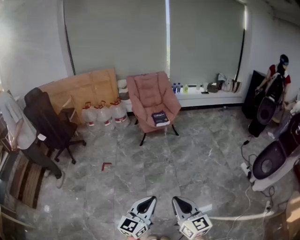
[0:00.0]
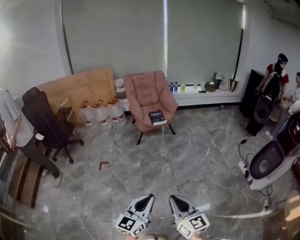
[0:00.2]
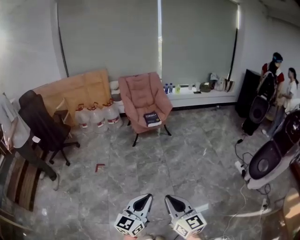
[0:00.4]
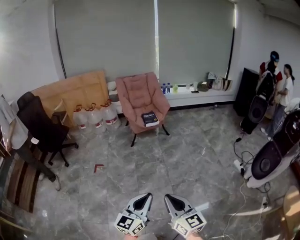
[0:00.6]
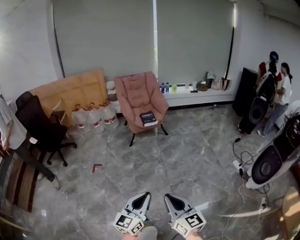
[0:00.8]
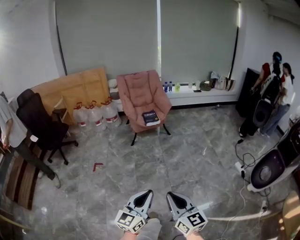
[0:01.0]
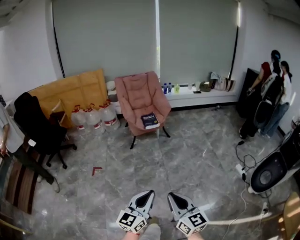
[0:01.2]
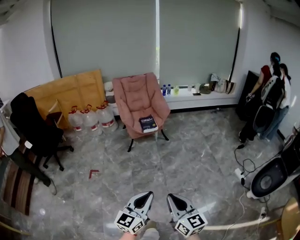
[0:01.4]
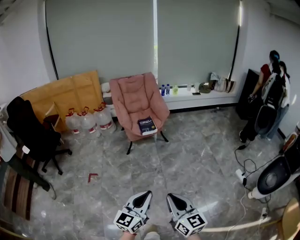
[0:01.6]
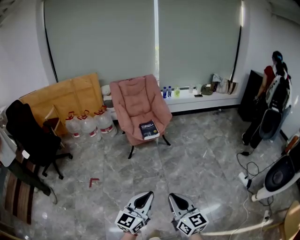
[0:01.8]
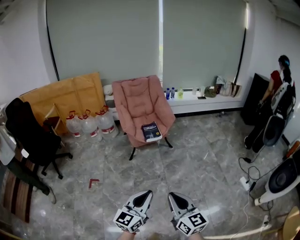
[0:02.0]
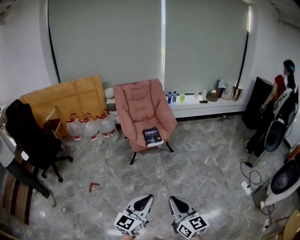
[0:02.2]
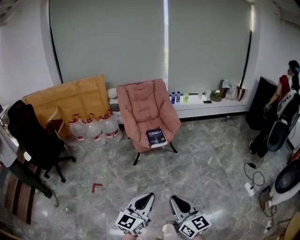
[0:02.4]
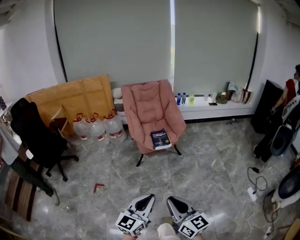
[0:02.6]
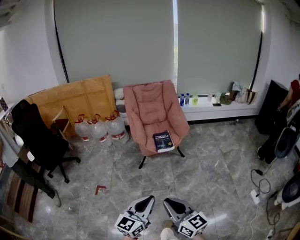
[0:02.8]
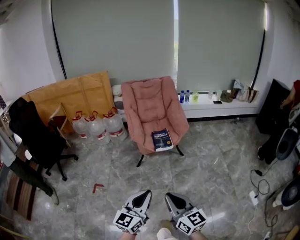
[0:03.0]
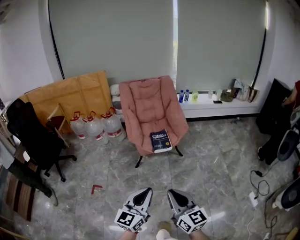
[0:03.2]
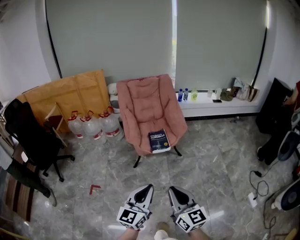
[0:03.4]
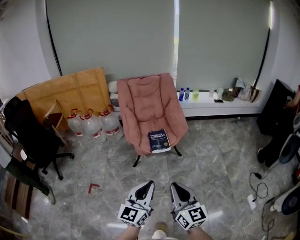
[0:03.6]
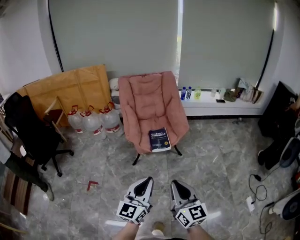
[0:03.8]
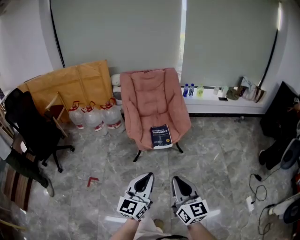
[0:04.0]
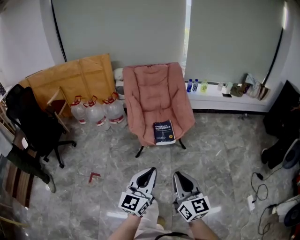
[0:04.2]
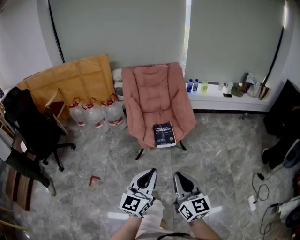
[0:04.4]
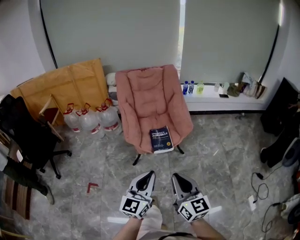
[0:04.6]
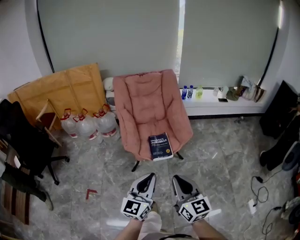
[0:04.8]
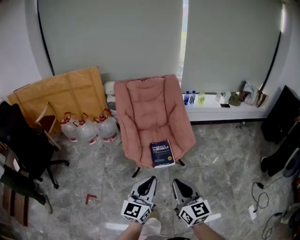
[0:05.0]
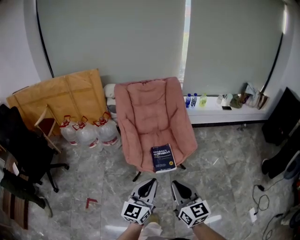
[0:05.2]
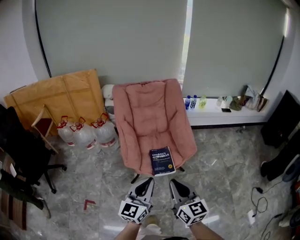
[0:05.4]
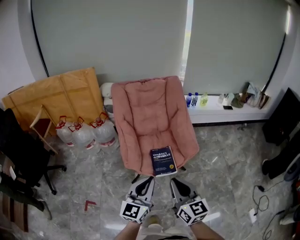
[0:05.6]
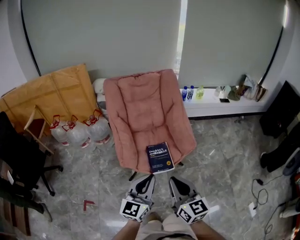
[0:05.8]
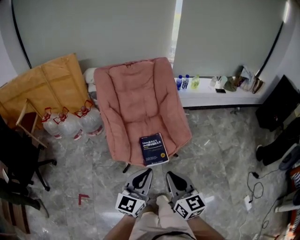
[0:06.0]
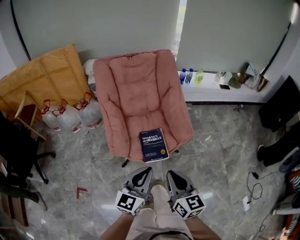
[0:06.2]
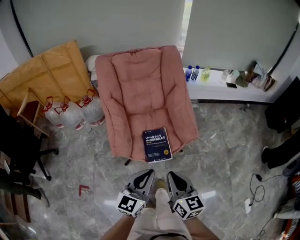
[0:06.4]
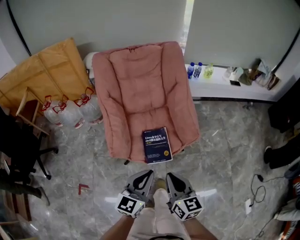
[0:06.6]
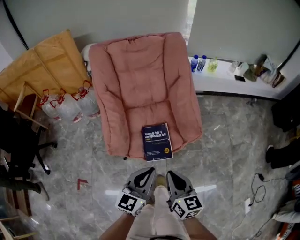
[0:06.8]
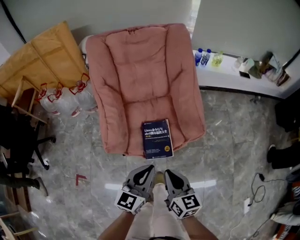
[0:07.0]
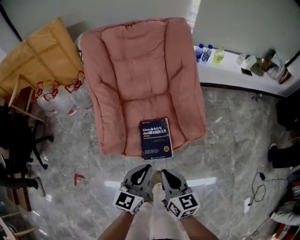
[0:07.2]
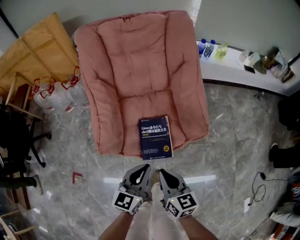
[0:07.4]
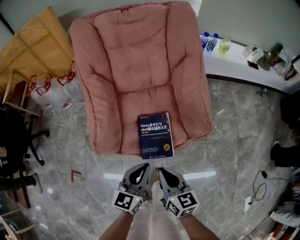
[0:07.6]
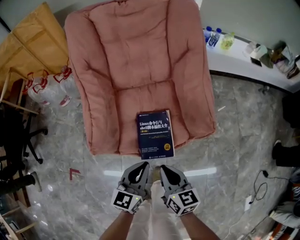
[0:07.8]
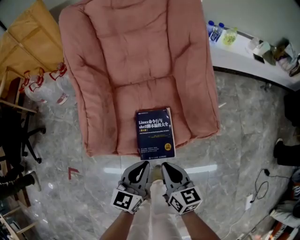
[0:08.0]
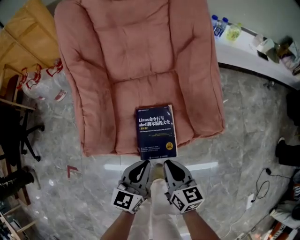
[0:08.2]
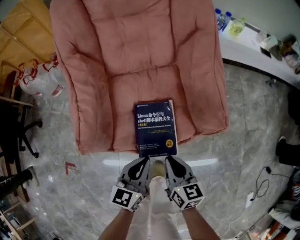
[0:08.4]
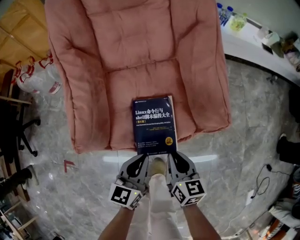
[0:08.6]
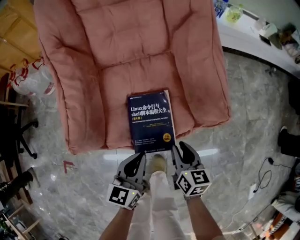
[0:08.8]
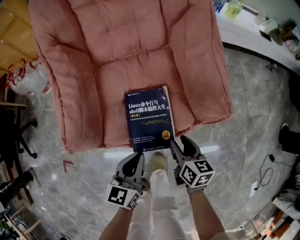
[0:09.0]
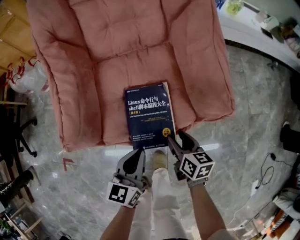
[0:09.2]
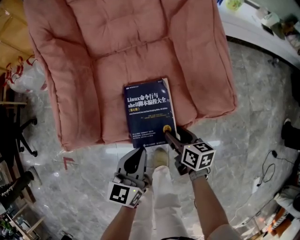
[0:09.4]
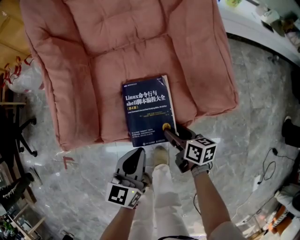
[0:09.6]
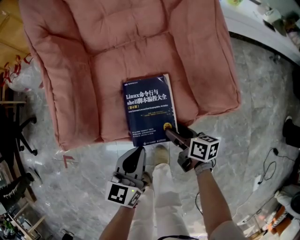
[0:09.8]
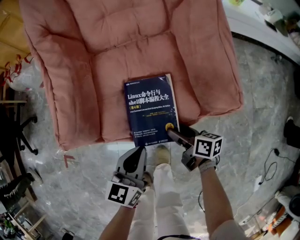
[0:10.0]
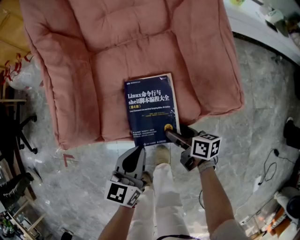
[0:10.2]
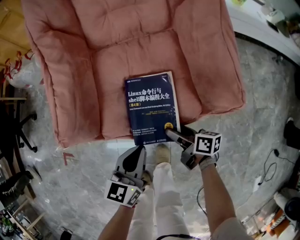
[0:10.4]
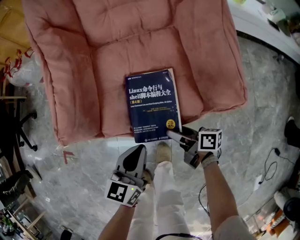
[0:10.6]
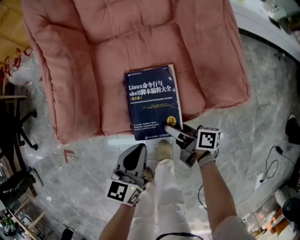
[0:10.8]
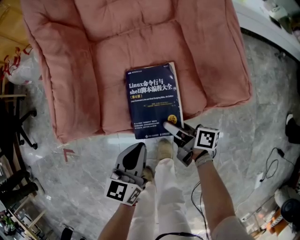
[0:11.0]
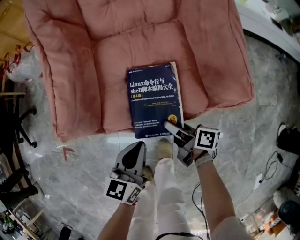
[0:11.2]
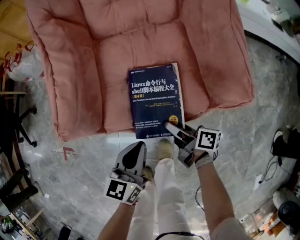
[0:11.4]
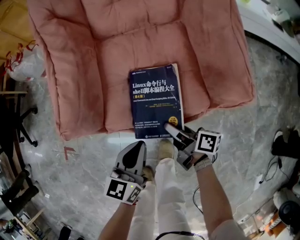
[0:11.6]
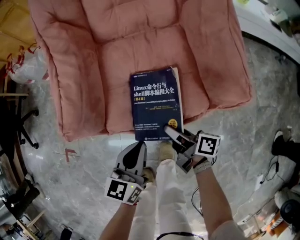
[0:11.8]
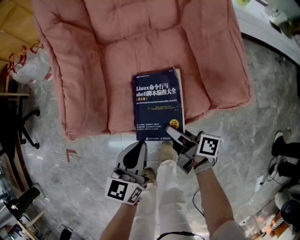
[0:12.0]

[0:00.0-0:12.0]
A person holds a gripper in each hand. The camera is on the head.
0:00.0 to 0:01.6: Both grippers move forward, some 20 cm.
0:01.6 to 0:03.0: The grippers both shift forward by some 25 cm.
0:03.0 to 0:04.4: The two grippers go some 20 cm forward.
0:04.4 to 0:06.0: Both grippers move forward, approximately 25 cm.
0:06.0 to 0:07.6: The grippers both shift downward and forward by approximately 25 cm. The left gripper turns by approximately 20 degrees. The right gripper rotates some 20 degrees.
0:07.6 to 0:09.0: The right gripper heads downward and to the right, covering roughly 20 cm, and opens its fingers. The left gripper shifts about 10 cm downward.
0:09.0 to 0:10.4: The right gripper is displaced downward by about 5 cm, and rotates some 30 degrees.
0:10.4 to 0:12.0: The right gripper travels upward by roughly 5 cm, and closes its fingers.

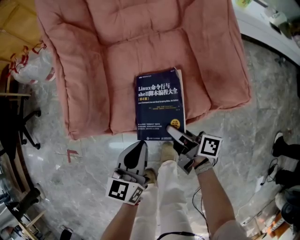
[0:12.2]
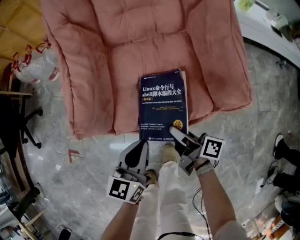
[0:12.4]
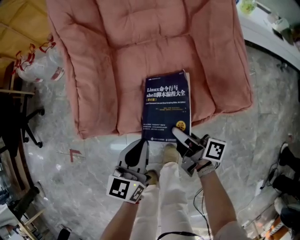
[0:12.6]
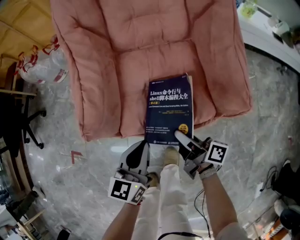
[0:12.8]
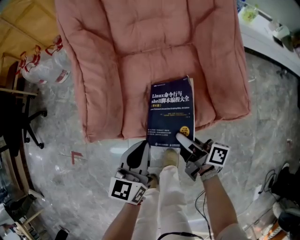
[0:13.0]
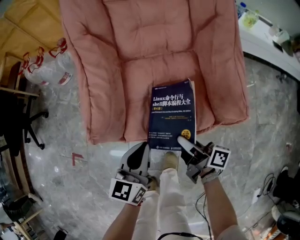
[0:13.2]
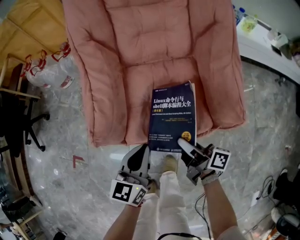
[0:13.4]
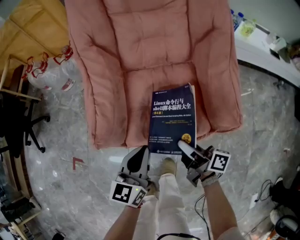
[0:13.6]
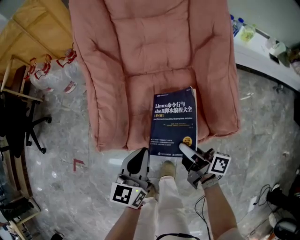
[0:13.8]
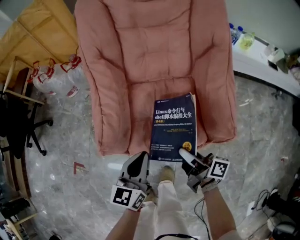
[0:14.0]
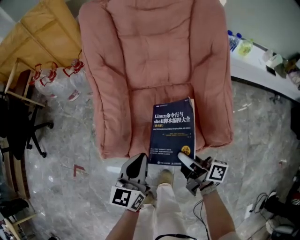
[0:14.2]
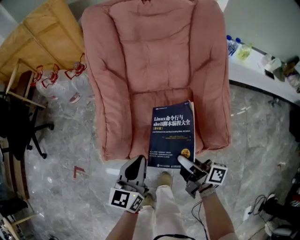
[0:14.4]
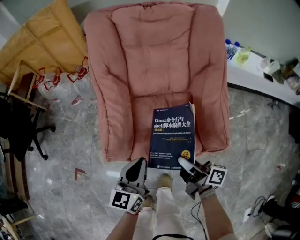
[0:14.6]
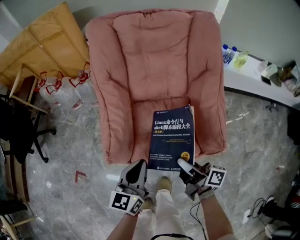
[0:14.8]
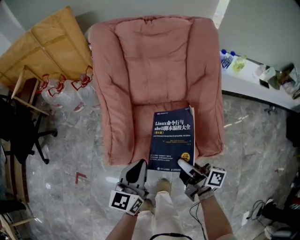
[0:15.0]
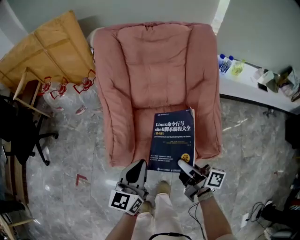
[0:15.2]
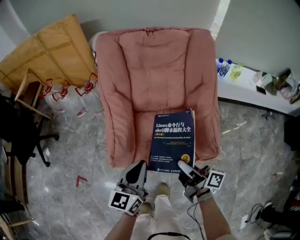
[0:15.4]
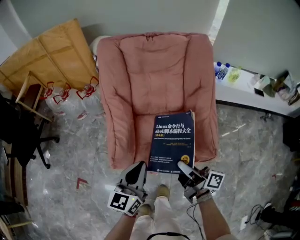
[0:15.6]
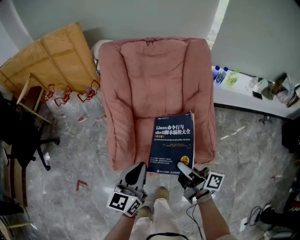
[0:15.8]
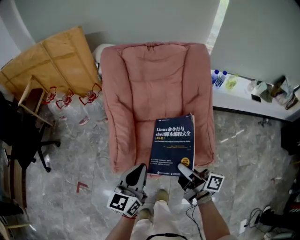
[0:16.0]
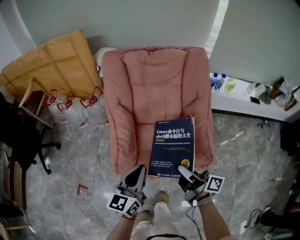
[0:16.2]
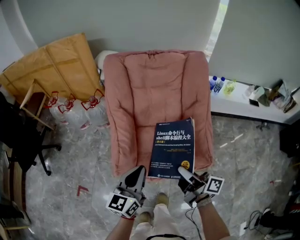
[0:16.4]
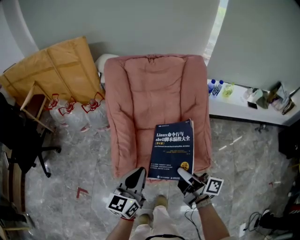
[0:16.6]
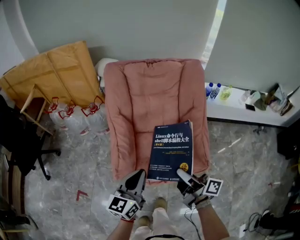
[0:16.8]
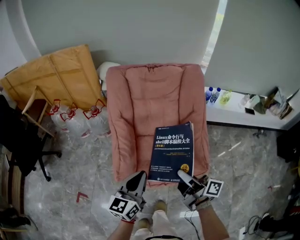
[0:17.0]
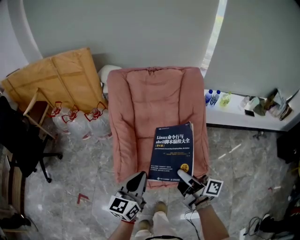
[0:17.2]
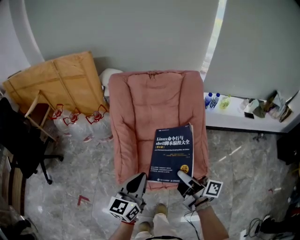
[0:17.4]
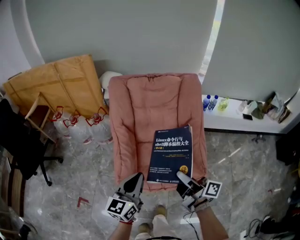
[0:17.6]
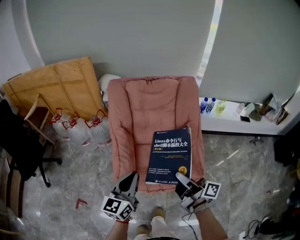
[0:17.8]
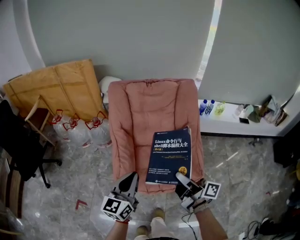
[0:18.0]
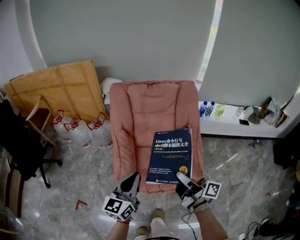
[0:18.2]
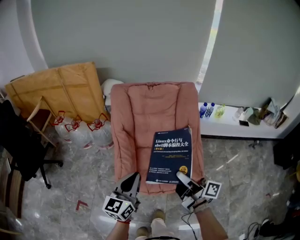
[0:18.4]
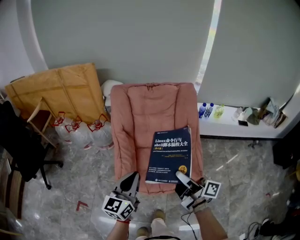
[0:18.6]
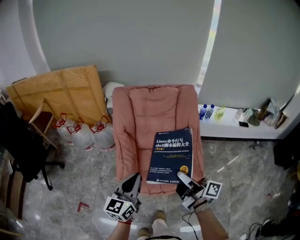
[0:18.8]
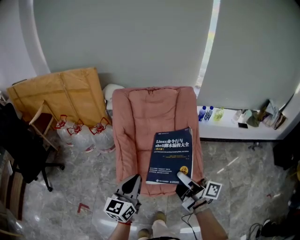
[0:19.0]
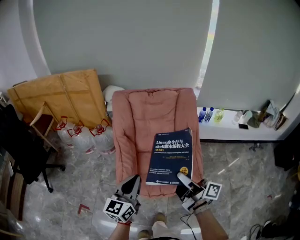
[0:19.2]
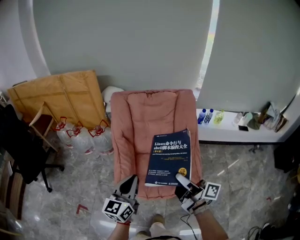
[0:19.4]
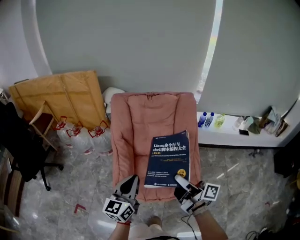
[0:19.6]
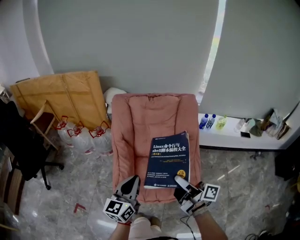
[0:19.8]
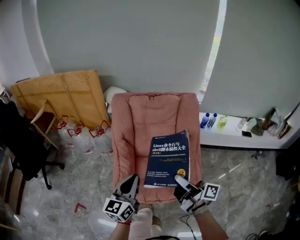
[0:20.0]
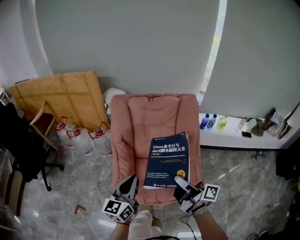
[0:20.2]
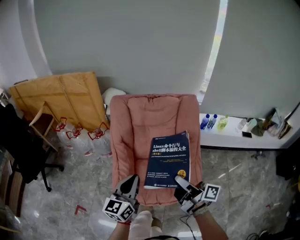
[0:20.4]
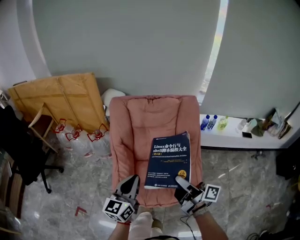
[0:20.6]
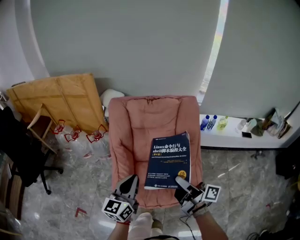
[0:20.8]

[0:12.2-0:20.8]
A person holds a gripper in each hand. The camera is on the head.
0:12.2 to 0:13.6: The two grippers go some 10 cm upward.
0:13.6 to 0:15.0: Both grippers travel together upward, some 10 cm.
0:15.0 to 0:16.6: Both grippers move upward, some 10 cm.
0:16.6 to 0:18.0: The two grippers go roughly 5 cm upward.
0:18.0 to 0:19.4: There are only small adjustments of the grippers.
0:19.4 to 0:20.8: The grippers both shift forward by approximately 5 cm.

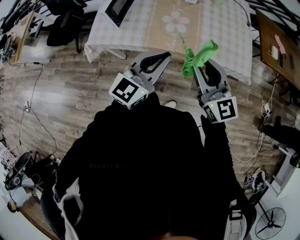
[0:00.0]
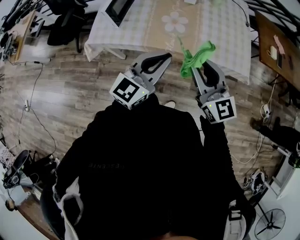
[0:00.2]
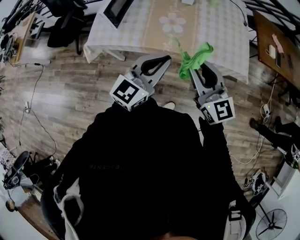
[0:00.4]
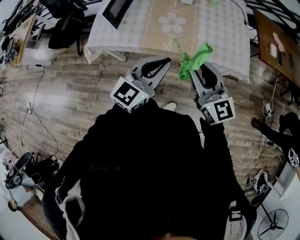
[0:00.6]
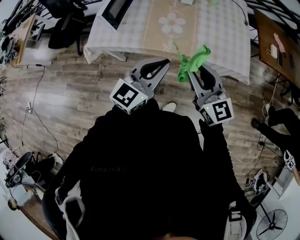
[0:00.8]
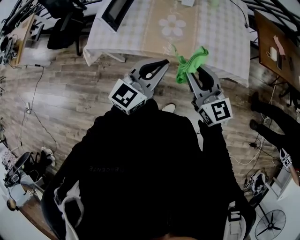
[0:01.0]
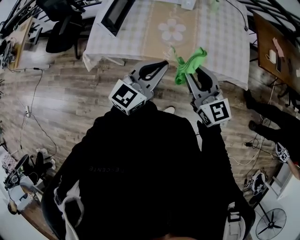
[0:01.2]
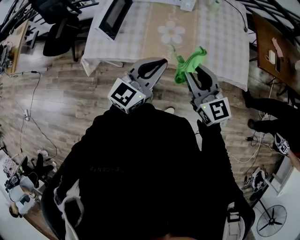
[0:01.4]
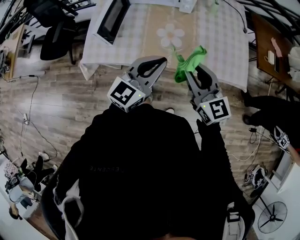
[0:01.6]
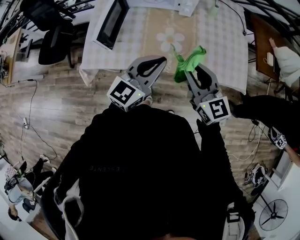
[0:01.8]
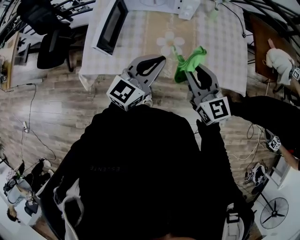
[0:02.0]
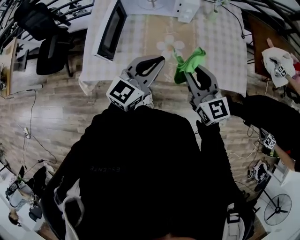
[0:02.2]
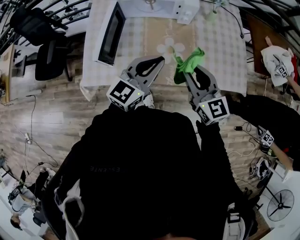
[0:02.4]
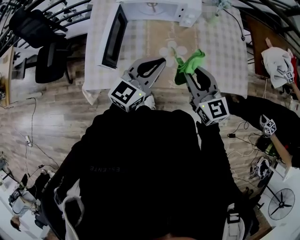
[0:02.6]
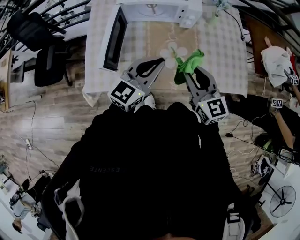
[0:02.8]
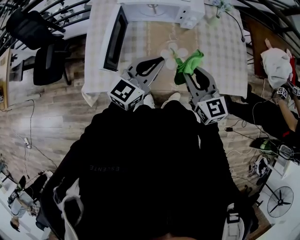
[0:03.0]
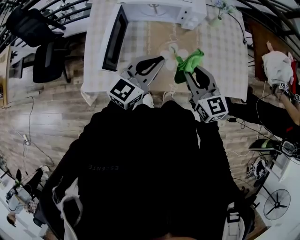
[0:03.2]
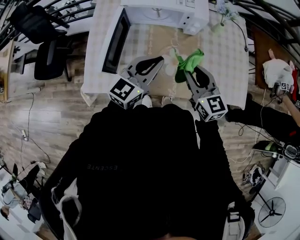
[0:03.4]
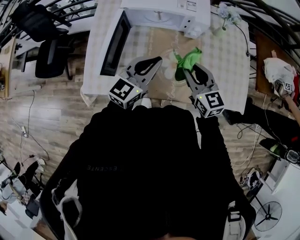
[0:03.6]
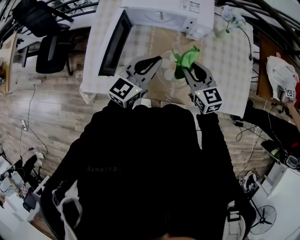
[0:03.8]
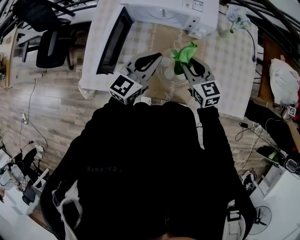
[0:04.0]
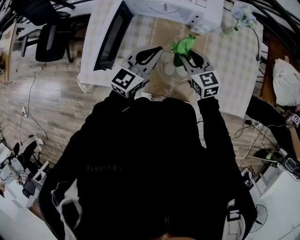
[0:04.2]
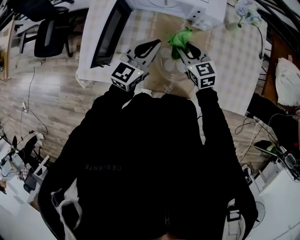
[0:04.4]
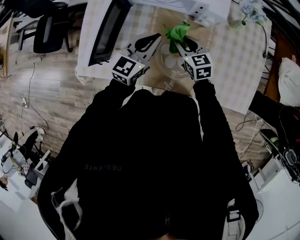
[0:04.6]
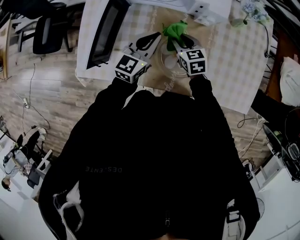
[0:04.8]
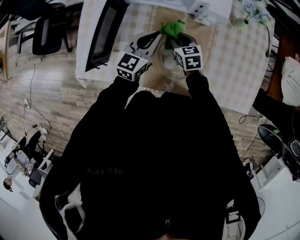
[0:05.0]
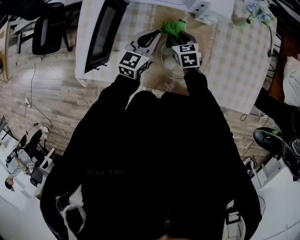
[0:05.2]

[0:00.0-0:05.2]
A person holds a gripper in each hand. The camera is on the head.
0:00.0 to 0:01.8: Both grippers travel together forward, some 15 cm.
0:01.8 to 0:03.4: Both grippers travel together forward and to the left, approximately 15 cm.
0:03.4 to 0:05.2: The two grippers go about 30 cm downward and forward. The left gripper changes its angle by some 20 degrees. Meanwhile the right gripper angles its fingers downward, by approximately 30 degrees.
